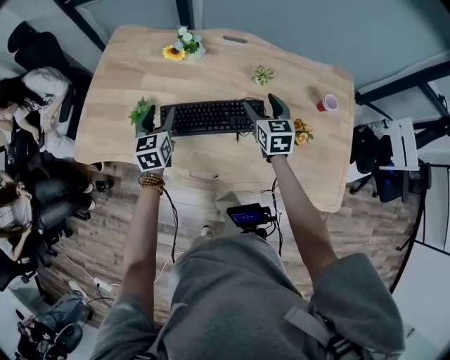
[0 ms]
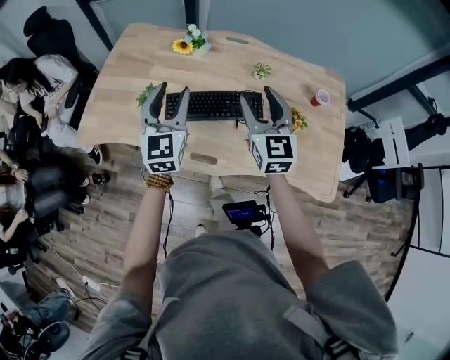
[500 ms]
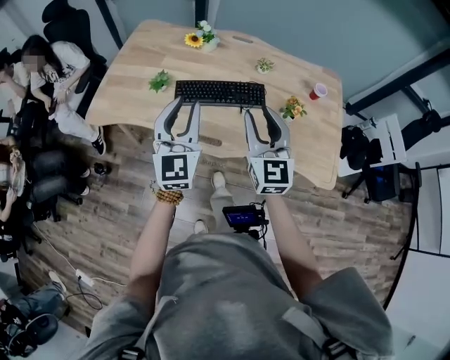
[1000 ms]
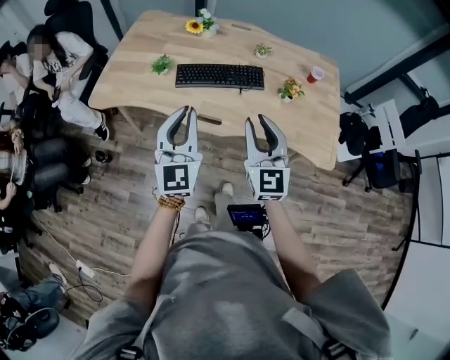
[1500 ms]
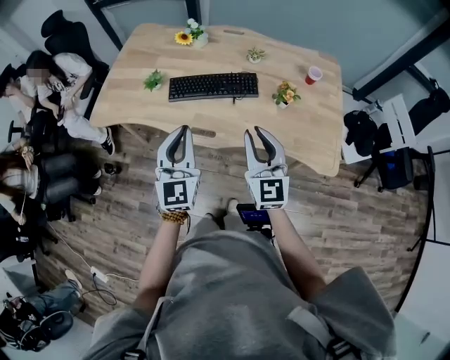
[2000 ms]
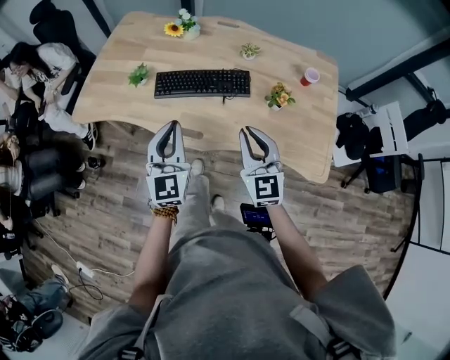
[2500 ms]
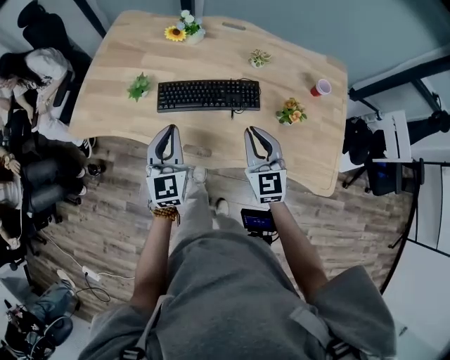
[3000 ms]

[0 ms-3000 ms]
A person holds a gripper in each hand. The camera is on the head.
0 ms to 1500 ms: Both grippers travel together backward and upward, some 40 cm. The right gripper turns by about 30 degrees, and closes its fingers, while the left gripper tips its fingers upward by about 30 degrees, and closes.
1500 ms to 3000 ms: Both grippers travel together forward and downward, about 20 cm.

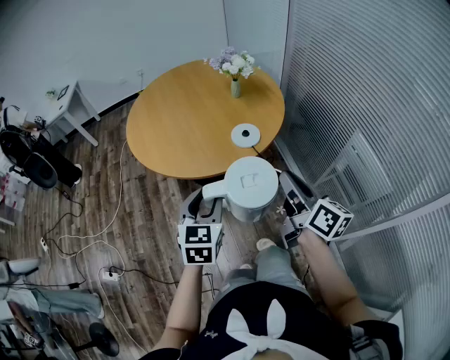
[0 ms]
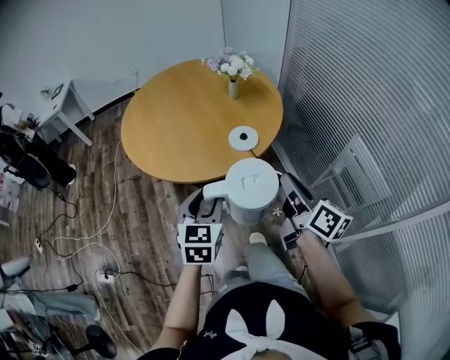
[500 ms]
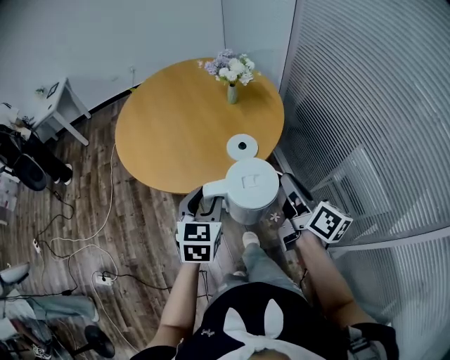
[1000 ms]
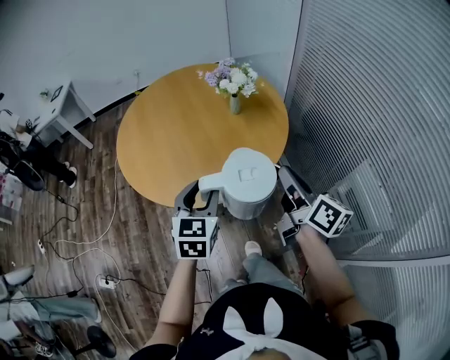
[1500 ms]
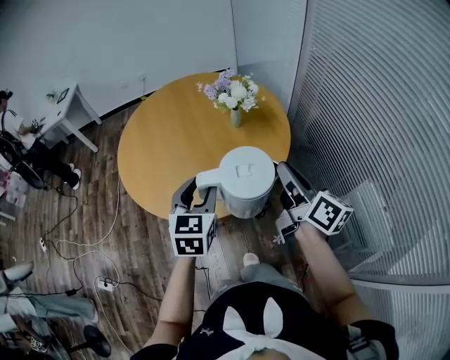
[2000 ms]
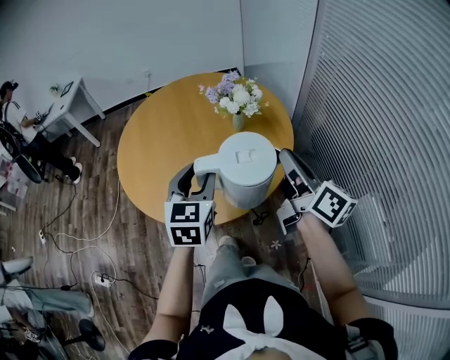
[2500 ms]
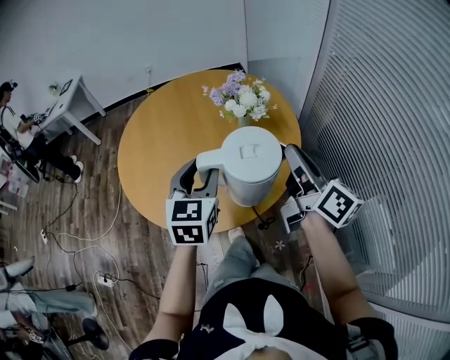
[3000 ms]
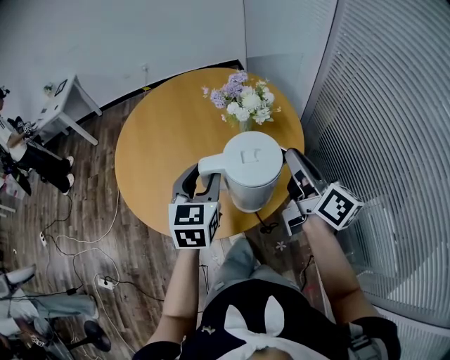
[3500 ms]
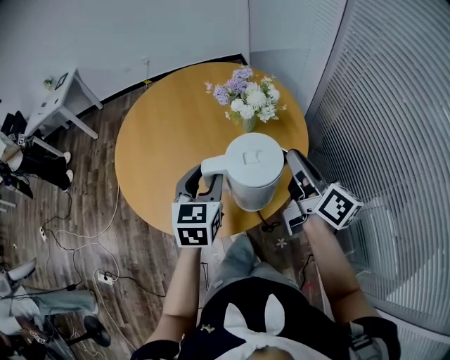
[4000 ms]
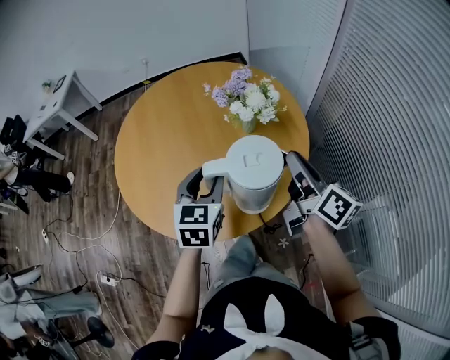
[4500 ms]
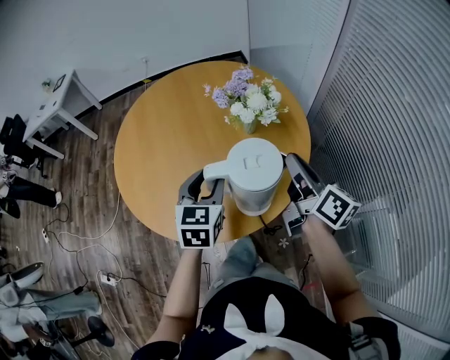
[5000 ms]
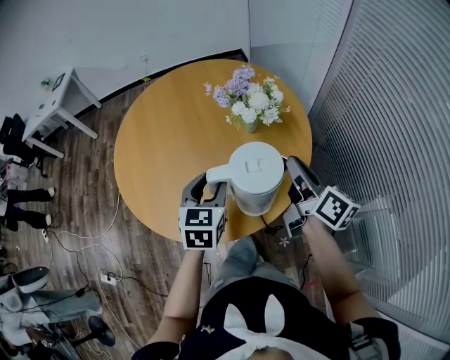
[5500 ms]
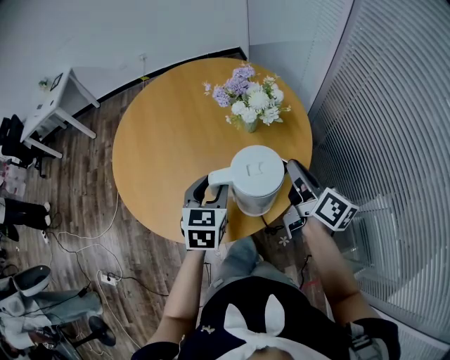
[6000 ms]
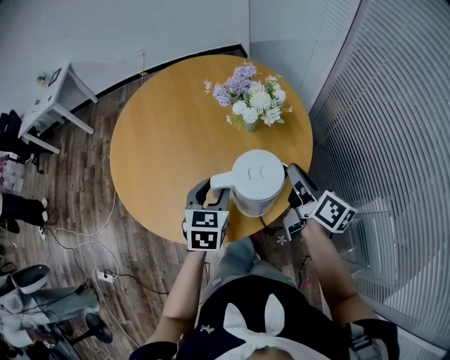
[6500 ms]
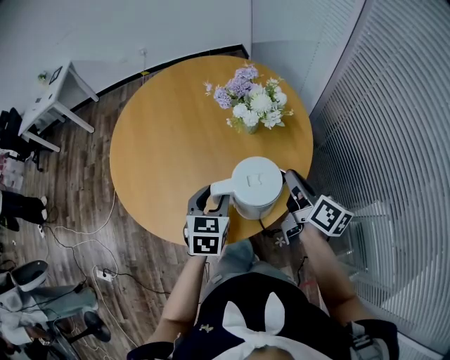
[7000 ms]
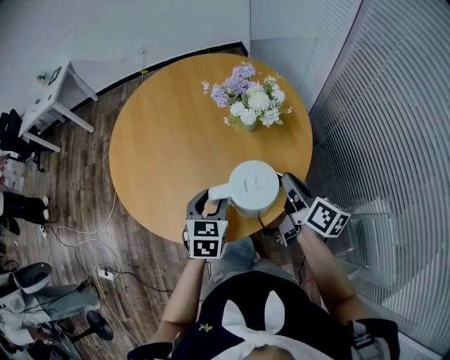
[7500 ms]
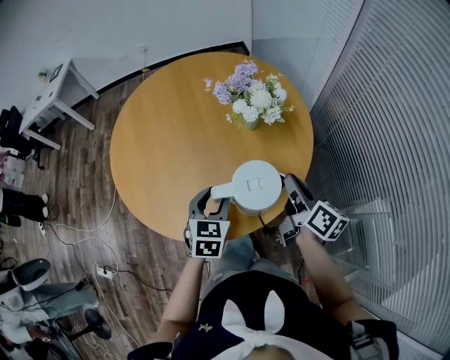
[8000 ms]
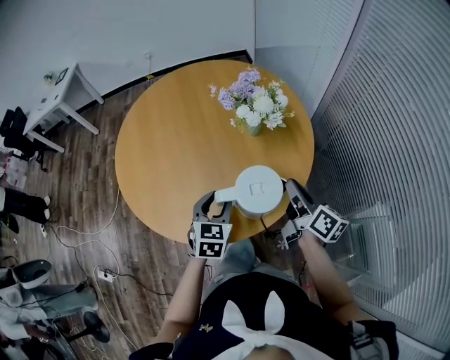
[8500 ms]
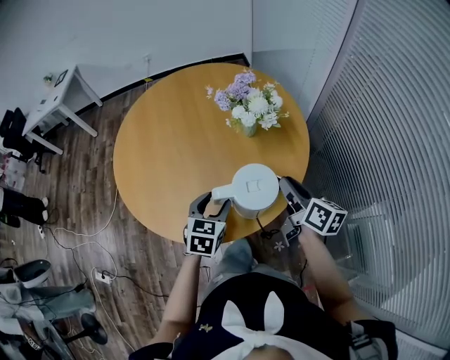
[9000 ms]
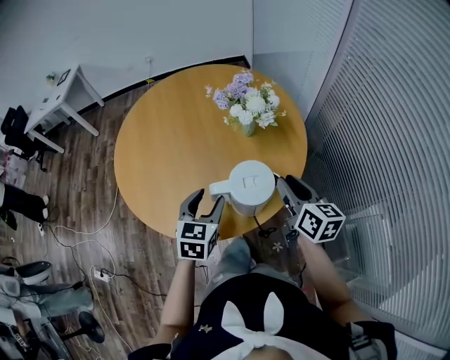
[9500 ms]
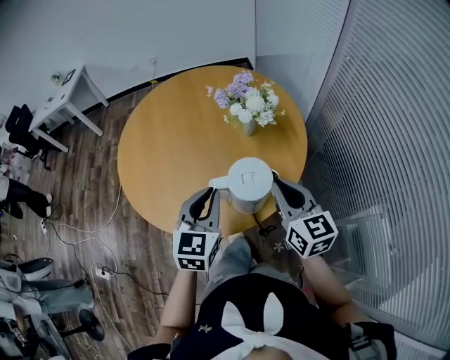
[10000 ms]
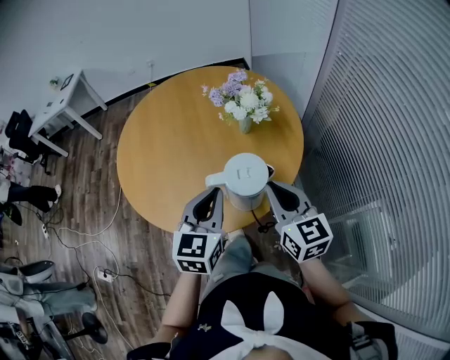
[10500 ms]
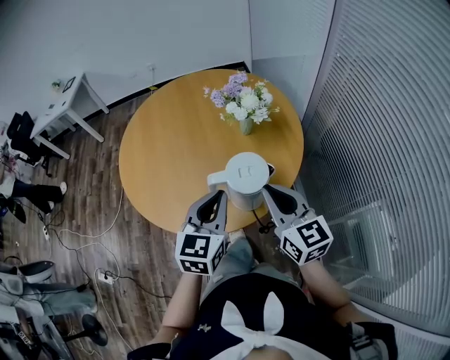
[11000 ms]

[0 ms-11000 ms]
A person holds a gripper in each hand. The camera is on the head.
0 ms to 2000 ms: Both grippers move forward, about 25 cm.
2000 ms to 3500 ms: Both grippers move forward, roughly 15 cm.
3500 ms to 5500 ms: Both grippers move downward, approximately 10 cm.
5500 ms to 7500 ms: Both grippers travel together downward, some 5 cm.
7500 ms to 9000 ms: The grippers move only a little.
9000 ms to 11000 ms: The left gripper shifts some 15 cm upward and backward, and closes its fingers, while the right gripper shifts about 15 cm upward, backward and to the left, and turns by about 40 degrees.

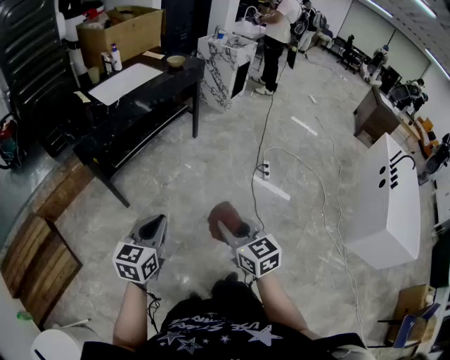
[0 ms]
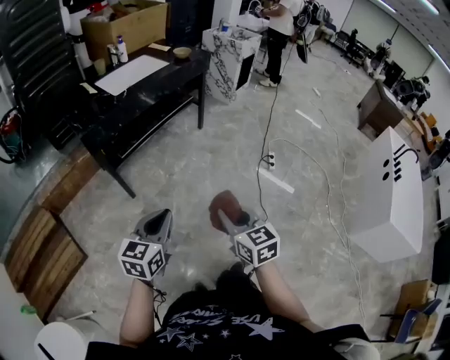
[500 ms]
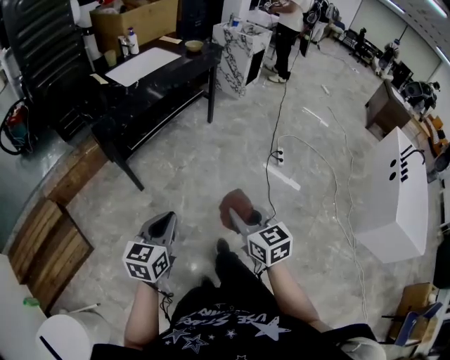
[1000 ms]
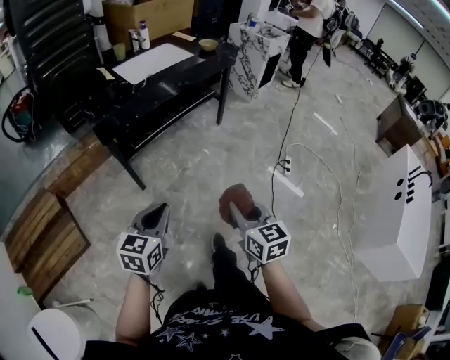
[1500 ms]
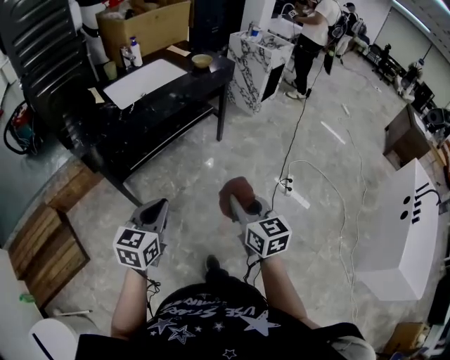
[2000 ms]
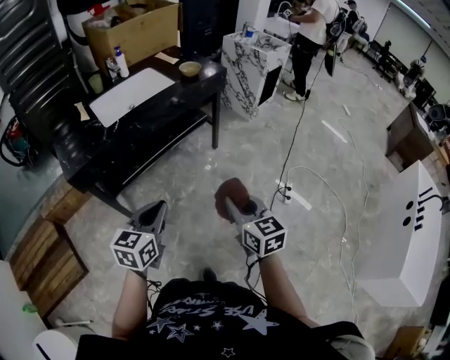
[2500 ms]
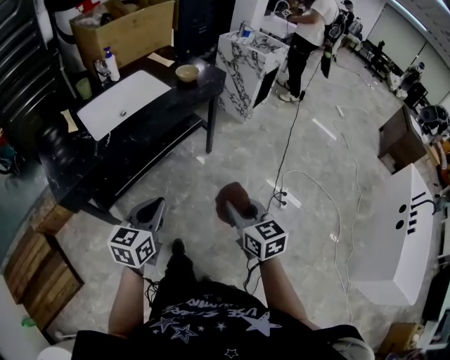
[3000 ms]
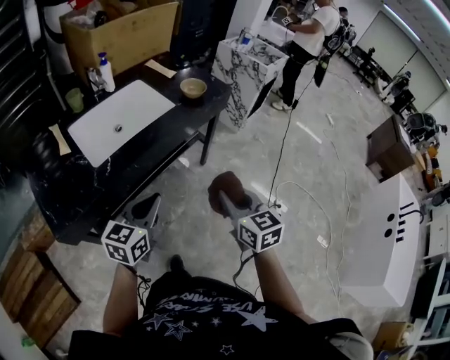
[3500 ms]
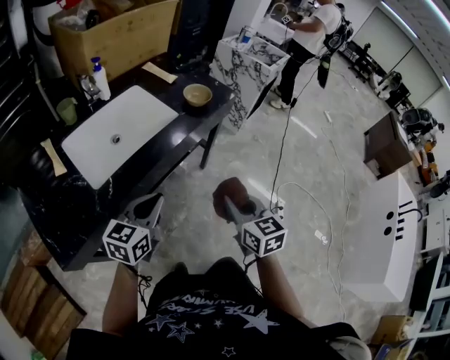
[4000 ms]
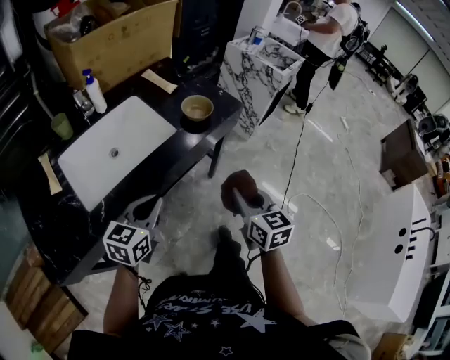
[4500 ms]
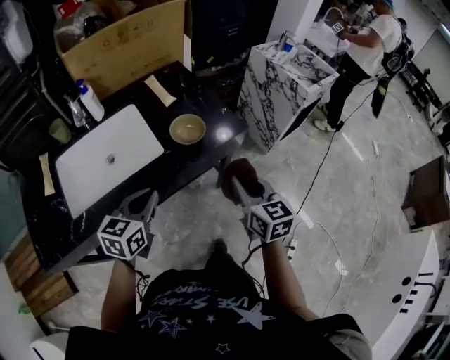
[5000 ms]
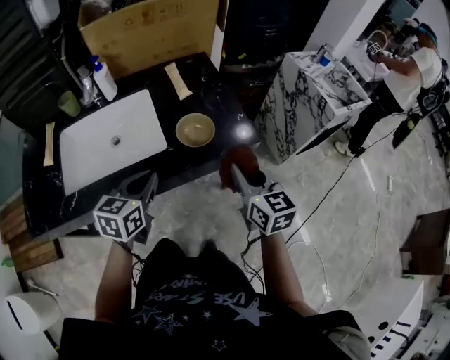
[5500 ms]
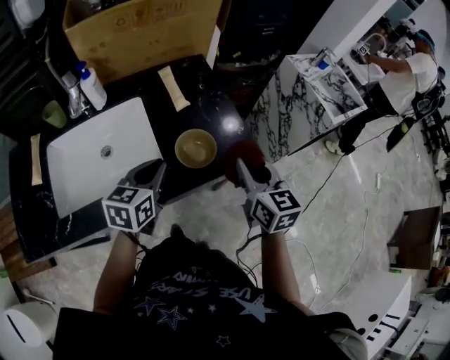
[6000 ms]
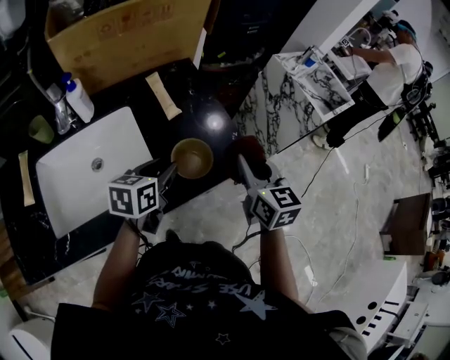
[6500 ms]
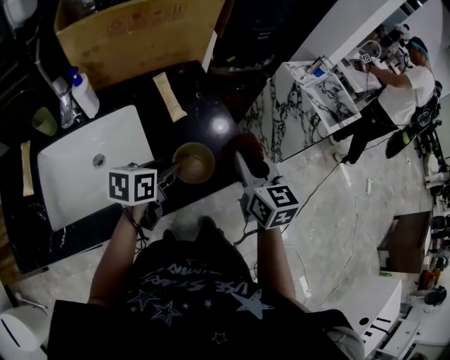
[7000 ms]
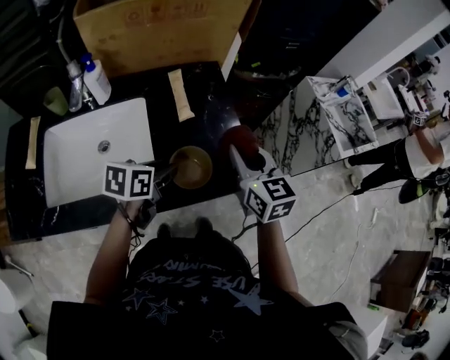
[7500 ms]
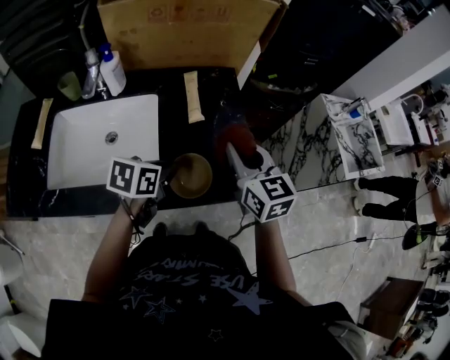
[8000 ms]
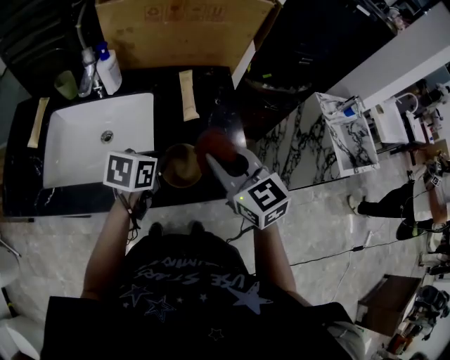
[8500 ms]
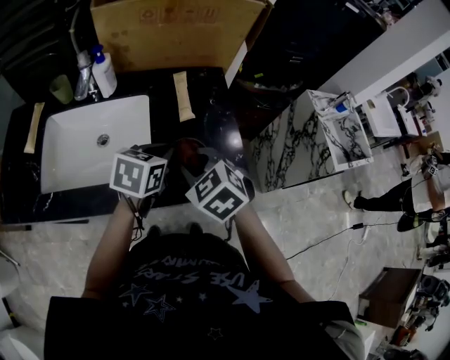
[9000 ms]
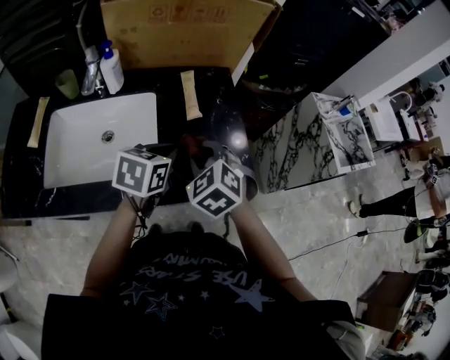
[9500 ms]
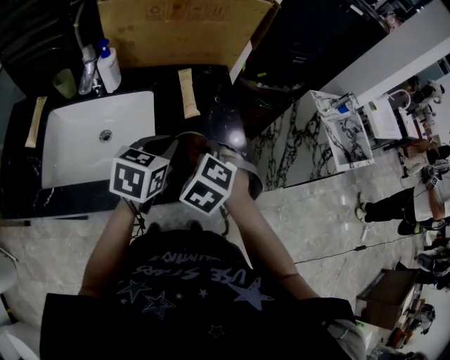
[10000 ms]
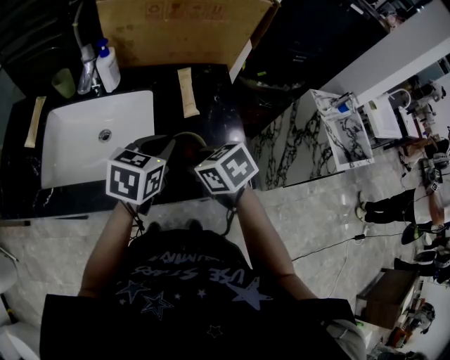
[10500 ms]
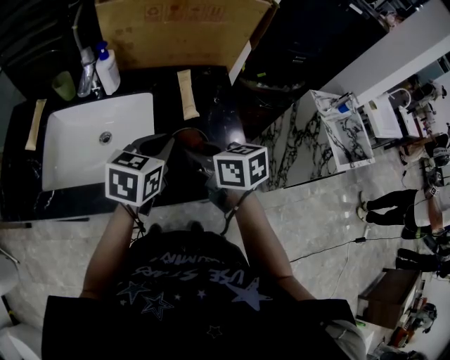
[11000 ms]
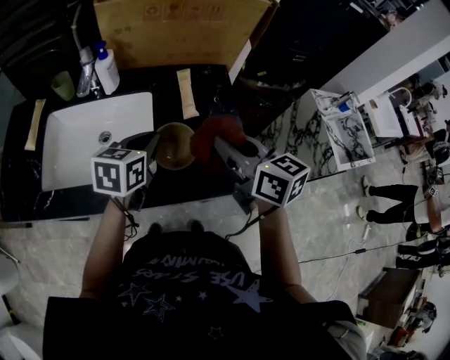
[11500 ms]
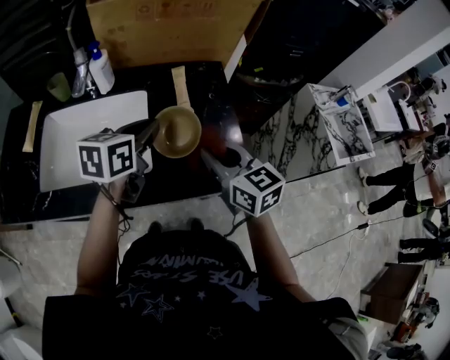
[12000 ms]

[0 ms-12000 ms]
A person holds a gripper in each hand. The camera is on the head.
0 ms to 2000 ms: The grippers both shift forward by some 20 cm.
2000 ms to 4000 ms: The two grippers travel together, forward, roughly 40 cm.
4000 ms to 6000 ms: The right gripper ends up some 50 cm from where it was, and swivels some 20 degrees. The left gripper changes place by approximately 35 cm, and turns by some 30 degrees.
6000 ms to 8000 ms: The left gripper heads forward, covering about 5 cm, turns by approximately 20 degrees, and opens, then closes again, while the right gripper shifts approximately 15 cm forward and to the left, and rotates approximately 20 degrees.
8000 ms to 10000 ms: The right gripper travels to the left, downward and backward by some 10 cm, and angles its fingers downward, by about 40 degrees, while the left gripper shifts some 5 cm upward, and swivels some 20 degrees.
10000 ms to 12000 ms: The right gripper heads upward, covering about 5 cm, and angles its fingers upward, by about 40 degrees, while the left gripper moves about 5 cm.
